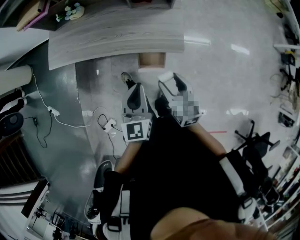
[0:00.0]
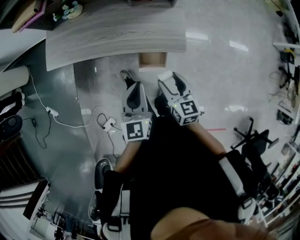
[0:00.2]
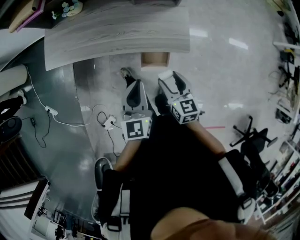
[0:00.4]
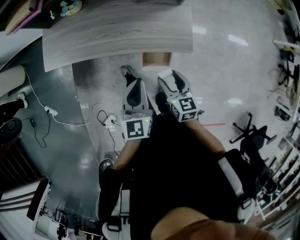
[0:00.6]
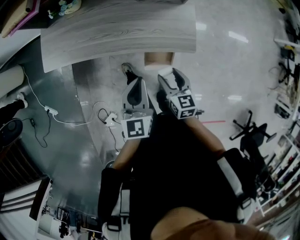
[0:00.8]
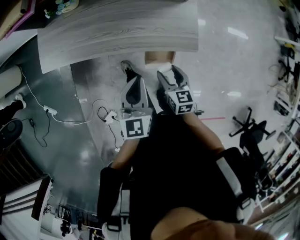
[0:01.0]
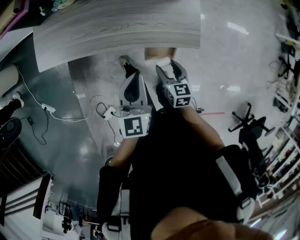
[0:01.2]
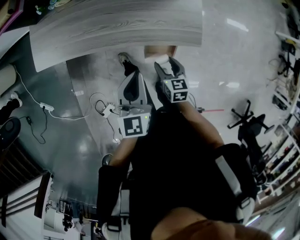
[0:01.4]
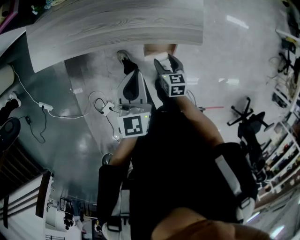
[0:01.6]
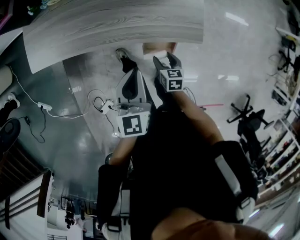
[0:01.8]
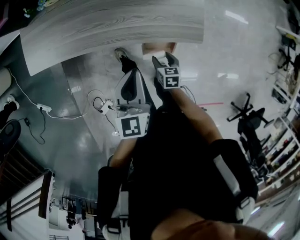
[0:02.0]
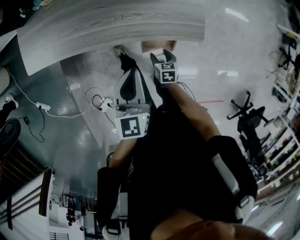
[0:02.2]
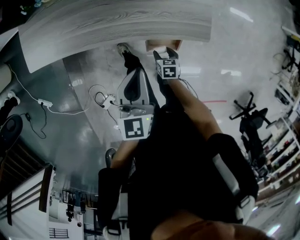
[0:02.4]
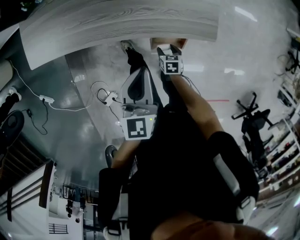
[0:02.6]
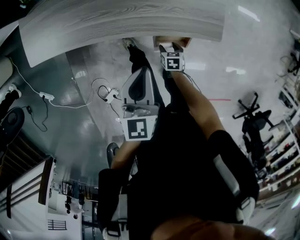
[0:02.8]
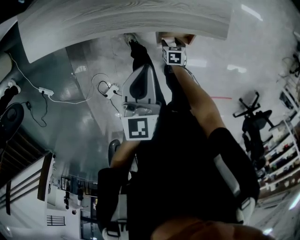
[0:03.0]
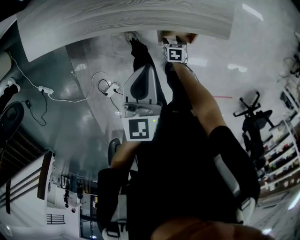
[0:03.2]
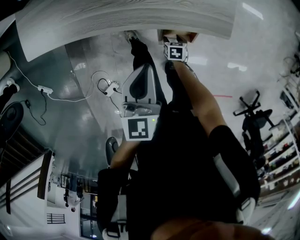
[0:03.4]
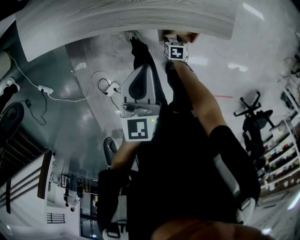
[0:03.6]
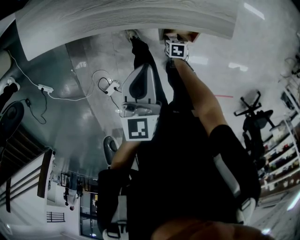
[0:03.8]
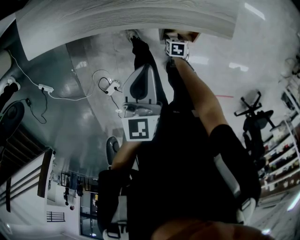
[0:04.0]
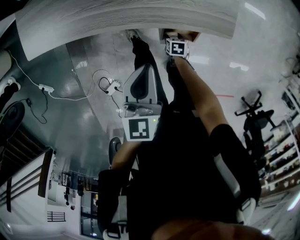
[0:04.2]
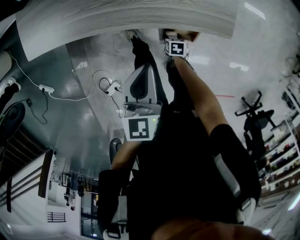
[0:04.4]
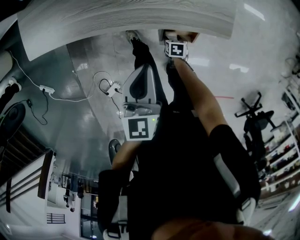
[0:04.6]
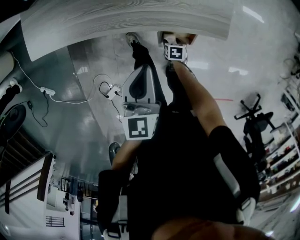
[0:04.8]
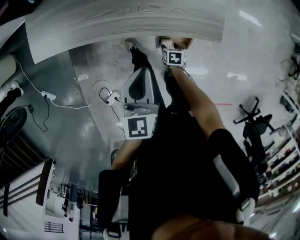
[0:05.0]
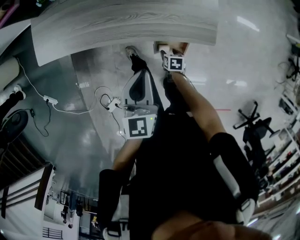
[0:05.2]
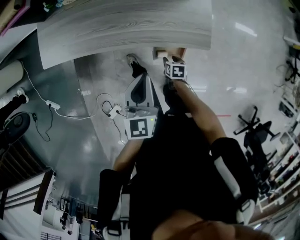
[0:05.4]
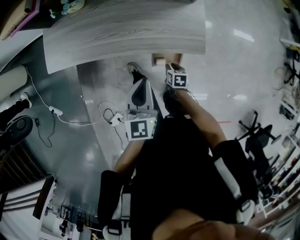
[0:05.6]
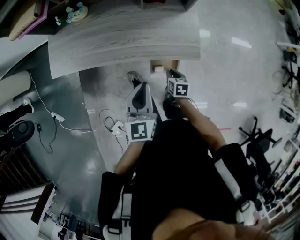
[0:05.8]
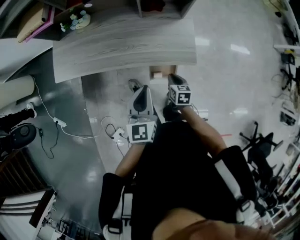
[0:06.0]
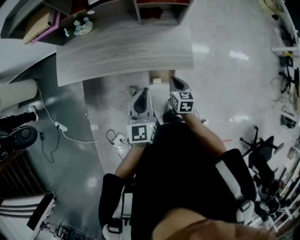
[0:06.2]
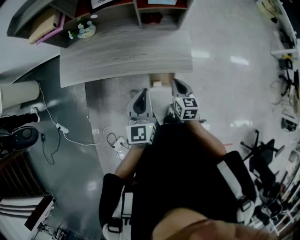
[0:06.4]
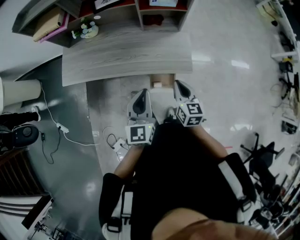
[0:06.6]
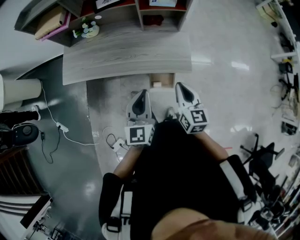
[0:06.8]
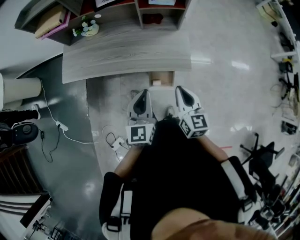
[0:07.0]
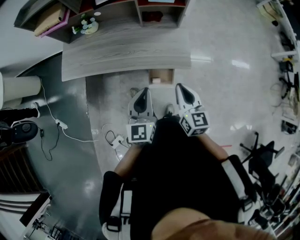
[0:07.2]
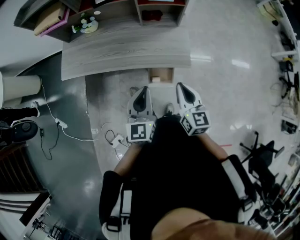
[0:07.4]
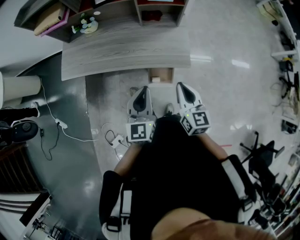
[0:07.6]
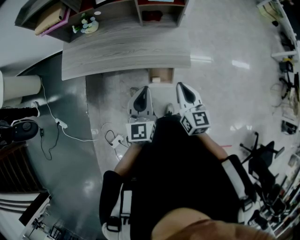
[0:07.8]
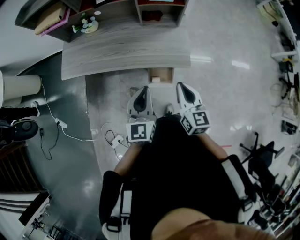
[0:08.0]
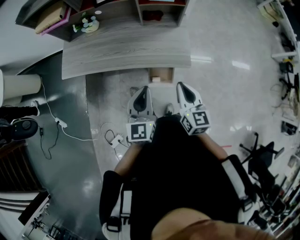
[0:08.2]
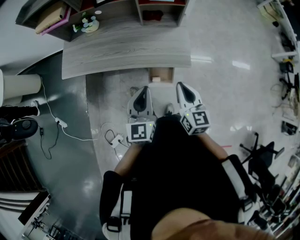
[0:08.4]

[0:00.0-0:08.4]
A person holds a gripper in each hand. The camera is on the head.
0.0 to 1.4 s: The right gripper moves downward, forward and to the left, roughly 20 cm, and swivels some 20 degrees; the left gripper heads forward, to the left and downward, covering about 15 cm.
1.4 to 2.8 s: The left gripper shifts approximately 5 cm downward; the right gripper travels downward by roughly 25 cm, and changes its angle by about 20 degrees.
2.8 to 4.2 s: The grippers stay close to where they were, moving slightly.
4.2 to 5.6 s: The right gripper shifts some 15 cm upward, and closes. The left gripper goes roughly 10 cm upward.
5.6 to 7.0 s: The right gripper heads upward, covering roughly 35 cm, tips its fingers upward by approximately 50 degrees, and closes up. Meanwhile the left gripper heads upward and backward, covering some 10 cm.
7.0 to 8.4 s: The grippers stay close to where they were, moving slightly.

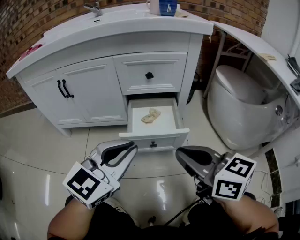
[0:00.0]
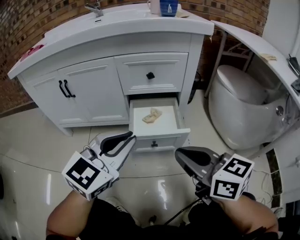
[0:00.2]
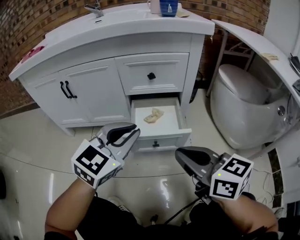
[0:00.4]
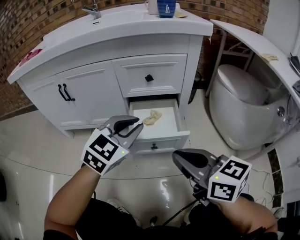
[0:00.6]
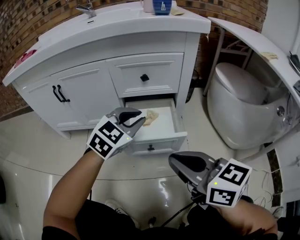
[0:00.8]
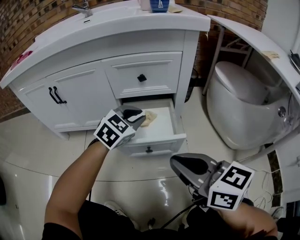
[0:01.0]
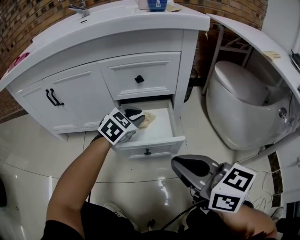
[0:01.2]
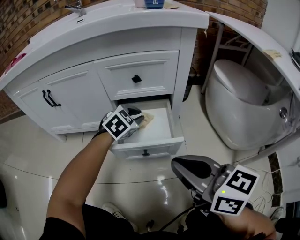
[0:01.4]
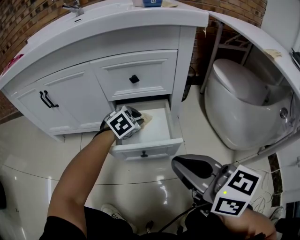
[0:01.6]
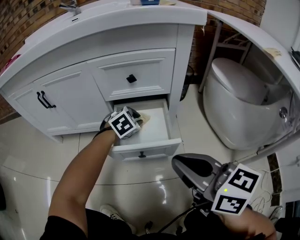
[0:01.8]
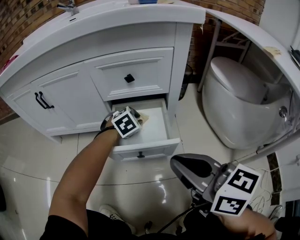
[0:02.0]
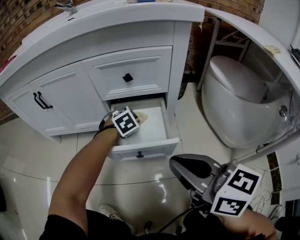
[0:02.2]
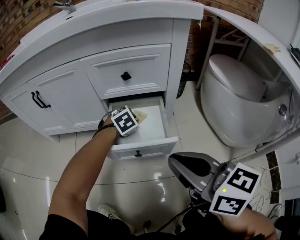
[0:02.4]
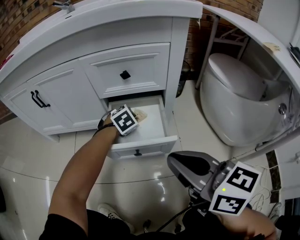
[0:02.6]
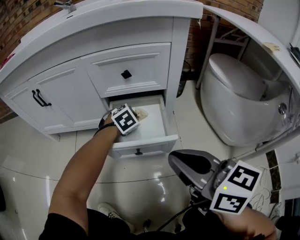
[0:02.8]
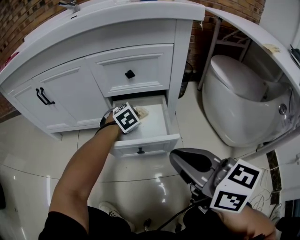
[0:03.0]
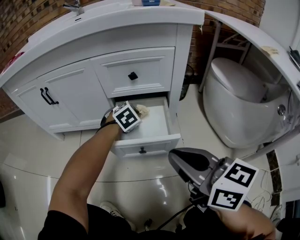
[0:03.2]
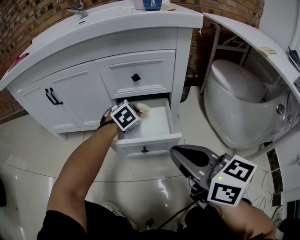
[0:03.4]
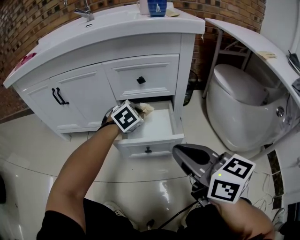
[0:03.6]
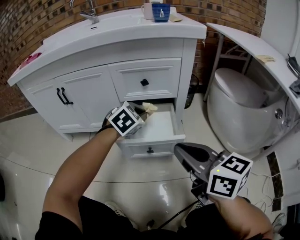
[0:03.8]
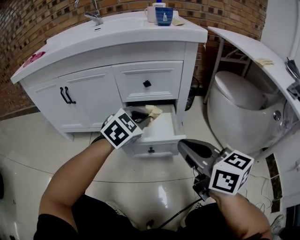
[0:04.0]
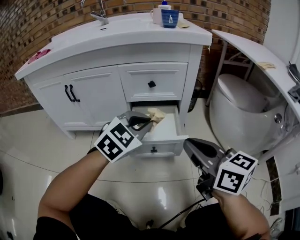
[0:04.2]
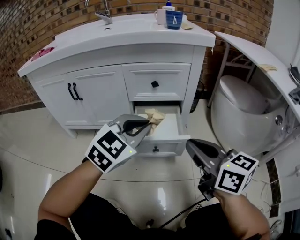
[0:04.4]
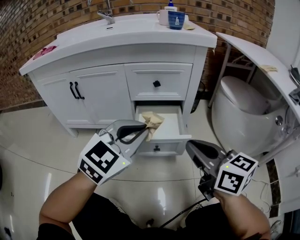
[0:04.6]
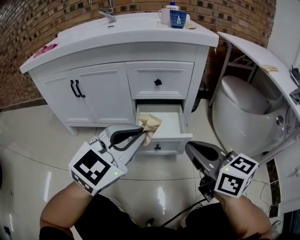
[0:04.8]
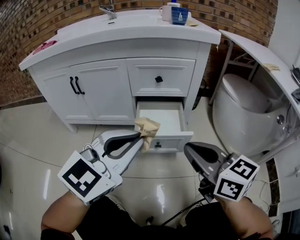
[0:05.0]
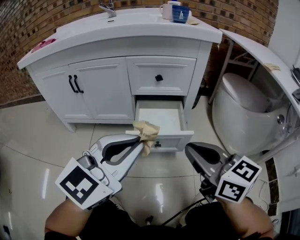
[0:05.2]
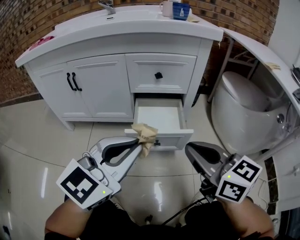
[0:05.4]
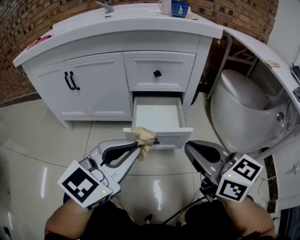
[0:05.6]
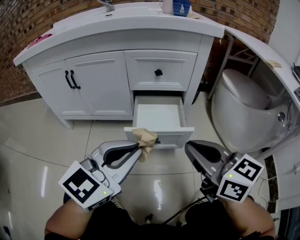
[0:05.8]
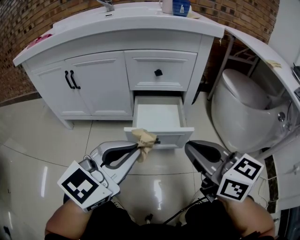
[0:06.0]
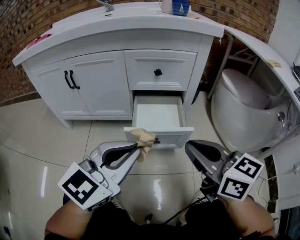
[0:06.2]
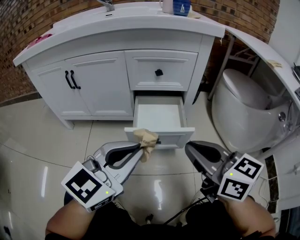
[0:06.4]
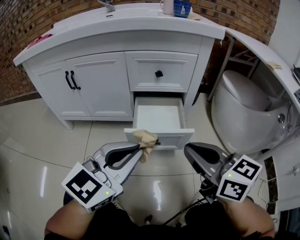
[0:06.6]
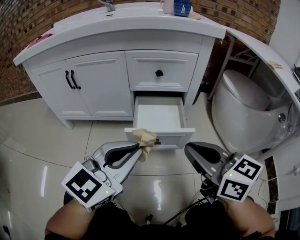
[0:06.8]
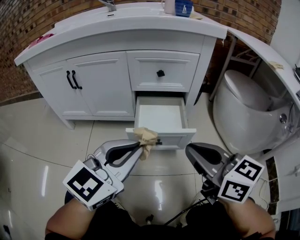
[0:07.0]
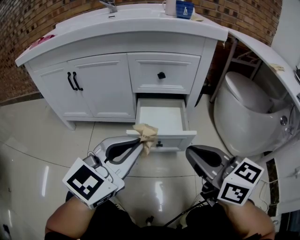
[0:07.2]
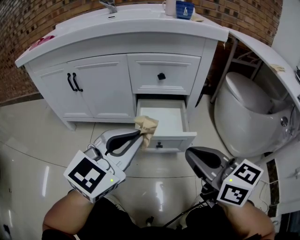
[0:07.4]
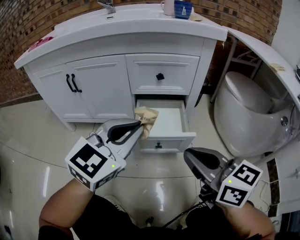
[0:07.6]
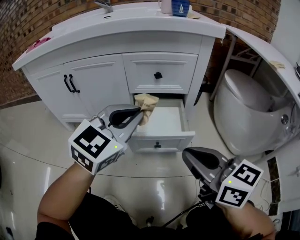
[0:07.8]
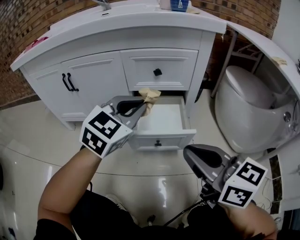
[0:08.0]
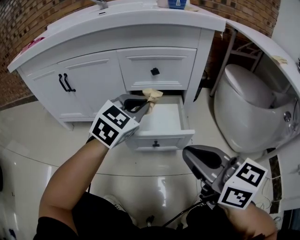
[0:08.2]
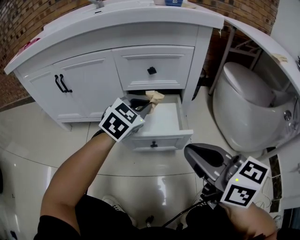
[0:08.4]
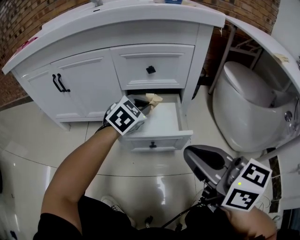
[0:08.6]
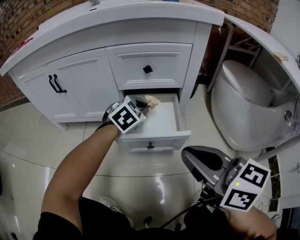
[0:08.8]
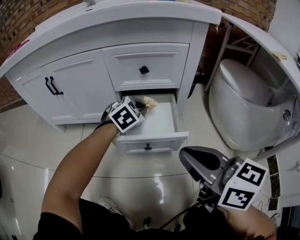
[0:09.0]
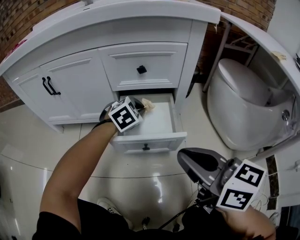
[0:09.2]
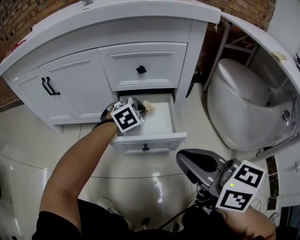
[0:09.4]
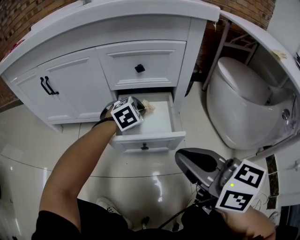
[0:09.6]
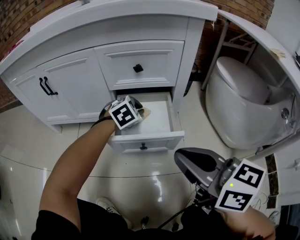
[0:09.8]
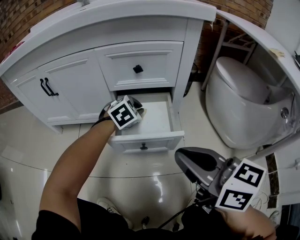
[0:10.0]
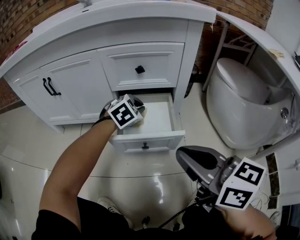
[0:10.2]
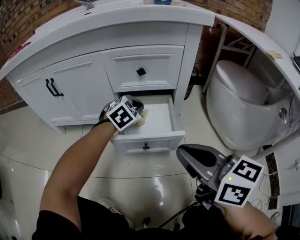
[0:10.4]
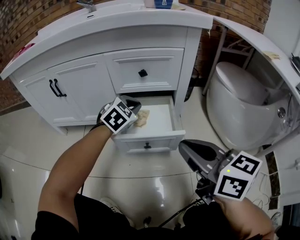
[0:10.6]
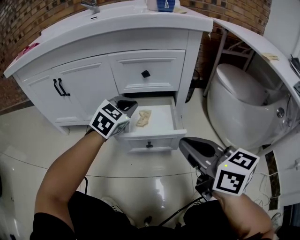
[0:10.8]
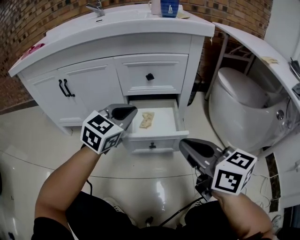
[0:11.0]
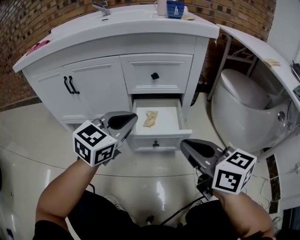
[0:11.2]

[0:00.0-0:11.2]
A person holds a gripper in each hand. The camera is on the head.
0.0 to 1.6 s: The left gripper shifts some 30 cm forward and downward, and angles its fingers downward, by some 40 degrees.
1.6 to 3.2 s: The grippers make only small movements.
3.2 to 4.8 s: The left gripper heads upward and backward, covering roughly 35 cm, and points its fingers some 40 degrees further upward.
4.8 to 6.4 s: The left gripper changes place by approximately 5 cm.
6.4 to 8.0 s: The left gripper shifts about 15 cm forward, and turns by approximately 20 degrees.
8.0 to 9.6 s: The left gripper goes roughly 25 cm downward and forward, and angles its fingers downward, by roughly 30 degrees.
9.6 to 11.2 s: The left gripper heads upward, backward and to the left, covering approximately 25 cm, and tilts its fingers some 40 degrees upward.

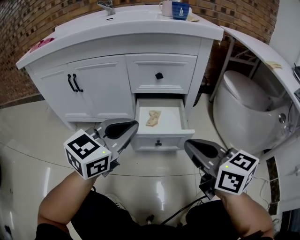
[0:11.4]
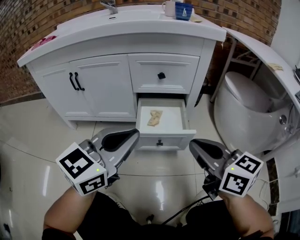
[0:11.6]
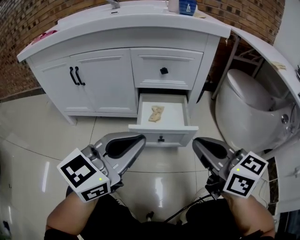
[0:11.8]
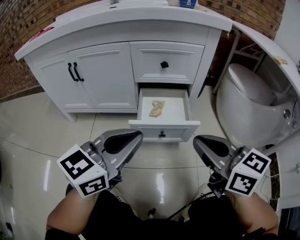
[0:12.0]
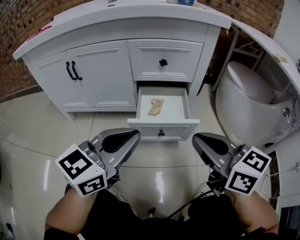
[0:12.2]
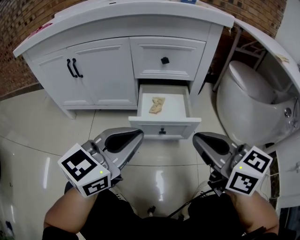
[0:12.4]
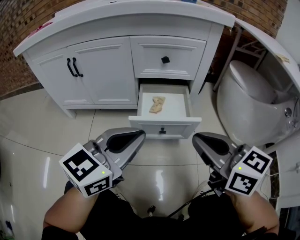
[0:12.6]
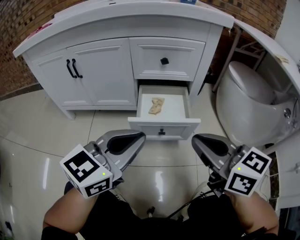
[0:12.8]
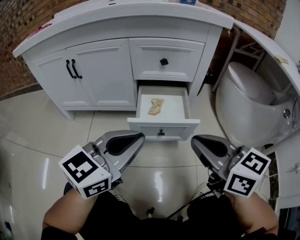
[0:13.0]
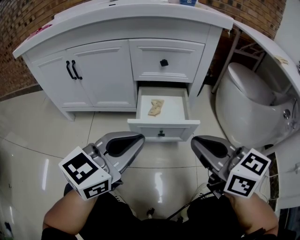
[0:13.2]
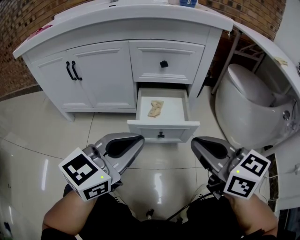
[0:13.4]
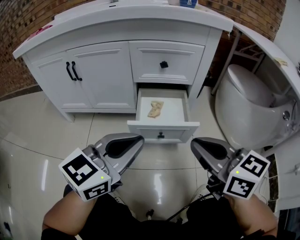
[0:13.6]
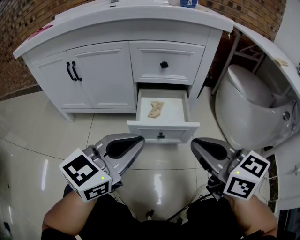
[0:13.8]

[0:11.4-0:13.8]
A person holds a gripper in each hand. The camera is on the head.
11.4 to 12.6 s: The left gripper shifts some 5 cm backward.
12.6 to 13.8 s: Both grippers stay about where they are.

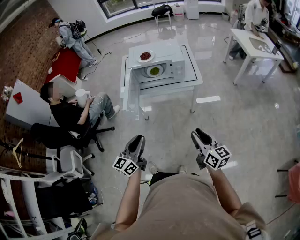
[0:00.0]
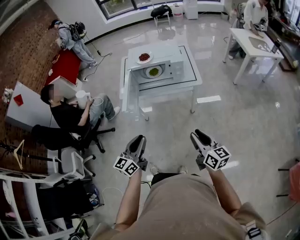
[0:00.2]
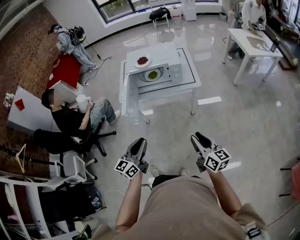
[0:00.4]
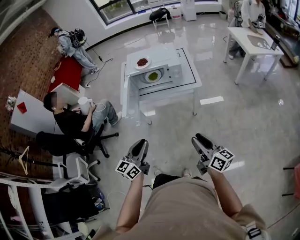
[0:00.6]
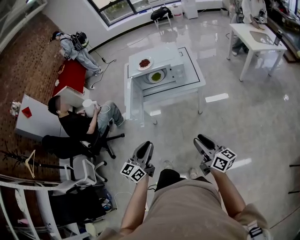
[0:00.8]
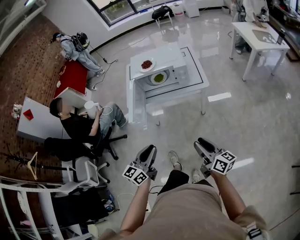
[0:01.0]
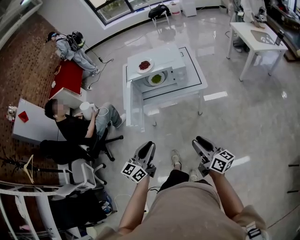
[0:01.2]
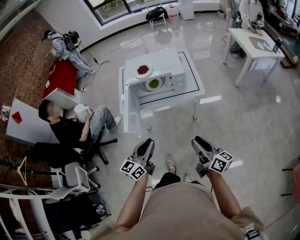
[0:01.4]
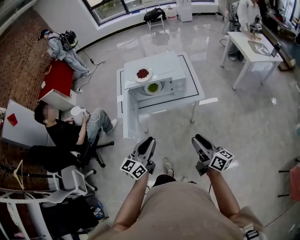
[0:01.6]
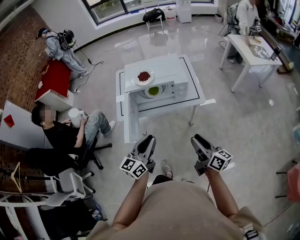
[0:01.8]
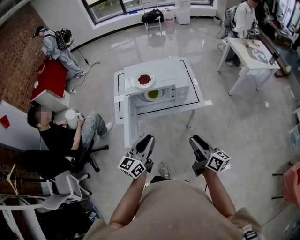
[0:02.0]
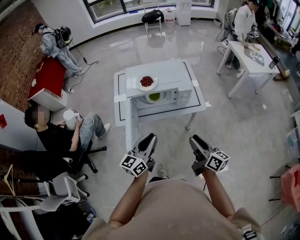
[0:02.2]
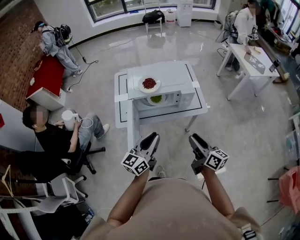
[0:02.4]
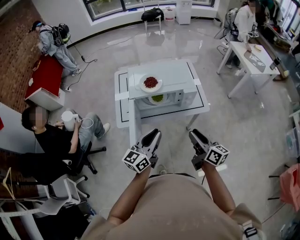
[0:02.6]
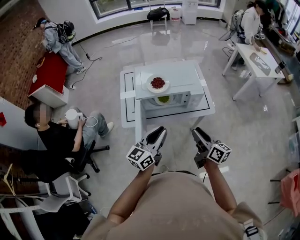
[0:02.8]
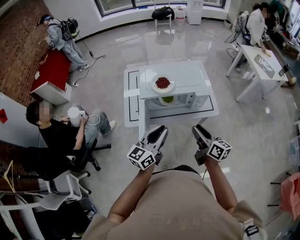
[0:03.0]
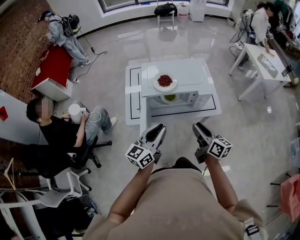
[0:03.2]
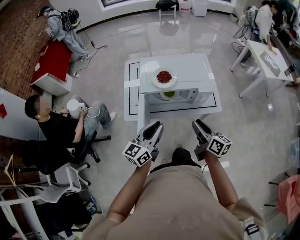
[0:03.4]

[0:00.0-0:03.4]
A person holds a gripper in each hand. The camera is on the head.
0.0 to 1.6 s: The grippers both shift forward by about 15 cm.
1.6 to 3.4 s: Both grippers travel together forward and to the left, approximately 25 cm.
